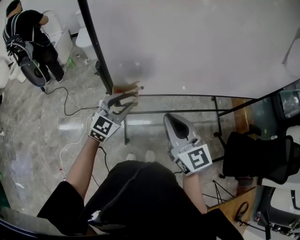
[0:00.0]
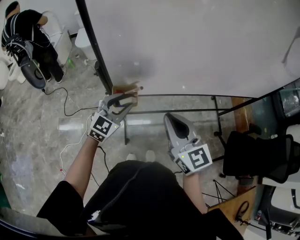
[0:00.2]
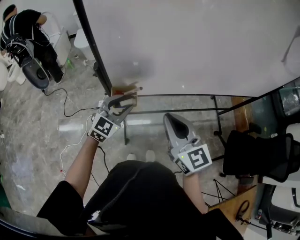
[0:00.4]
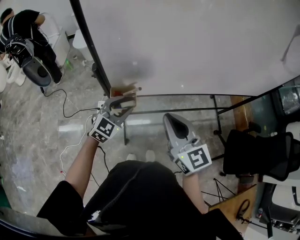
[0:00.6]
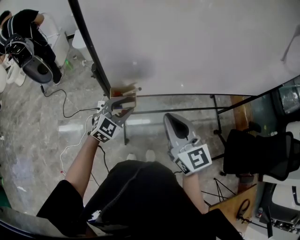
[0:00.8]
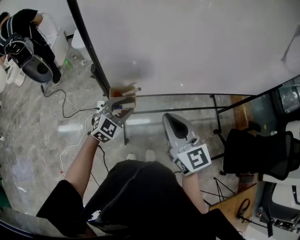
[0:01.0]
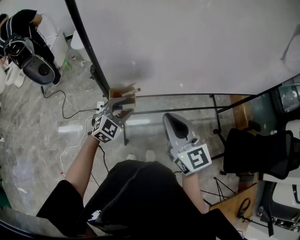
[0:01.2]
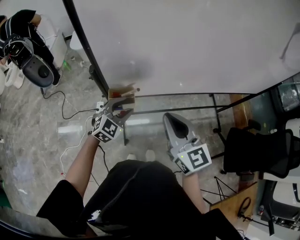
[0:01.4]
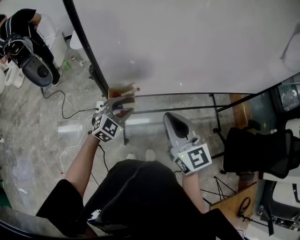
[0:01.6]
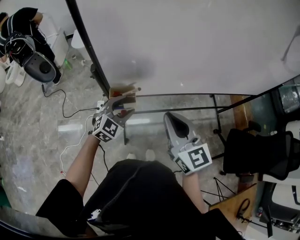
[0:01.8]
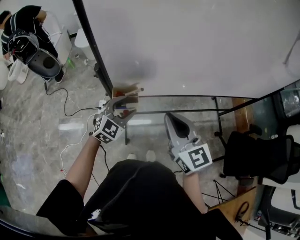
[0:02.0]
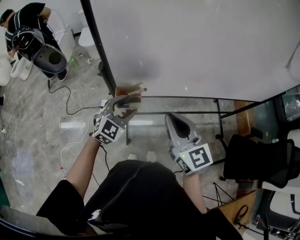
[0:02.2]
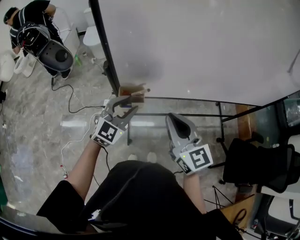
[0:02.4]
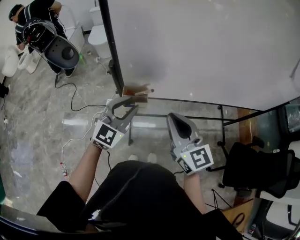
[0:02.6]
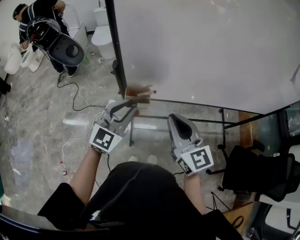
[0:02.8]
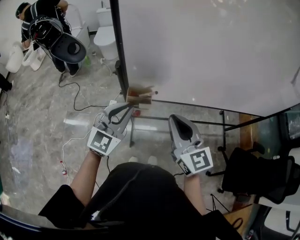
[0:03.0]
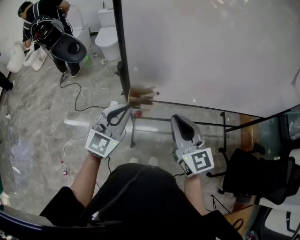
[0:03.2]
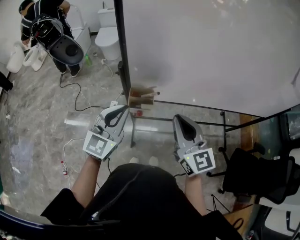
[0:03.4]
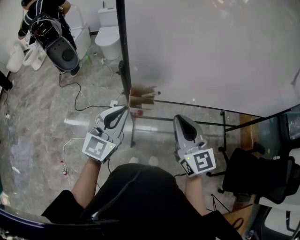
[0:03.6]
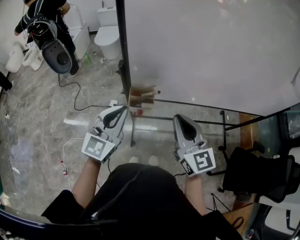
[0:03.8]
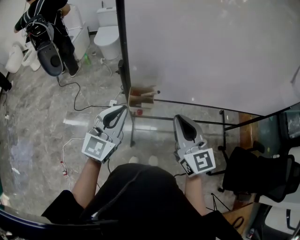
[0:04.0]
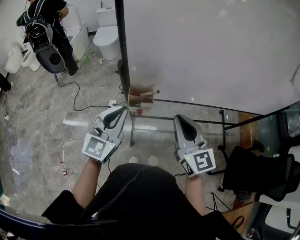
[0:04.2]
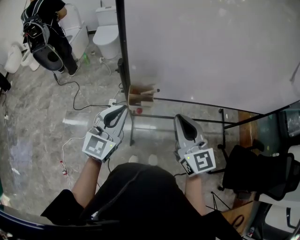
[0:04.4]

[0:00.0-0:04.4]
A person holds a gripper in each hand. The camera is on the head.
0:00.0 to 0:01.4: The left gripper goes some 5 cm downward.
0:01.4 to 0:03.0: The left gripper heads upward, covering approximately 15 cm, changes its angle by some 30 degrees, and closes its fingers.
0:03.0 to 0:04.4: The grippers move only a little.

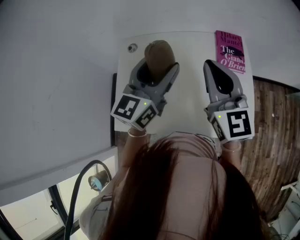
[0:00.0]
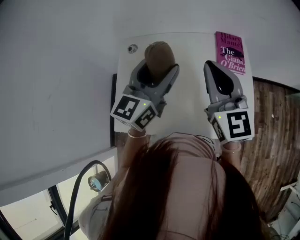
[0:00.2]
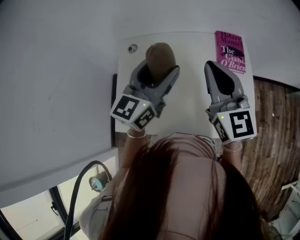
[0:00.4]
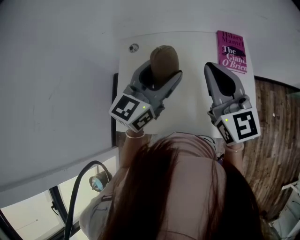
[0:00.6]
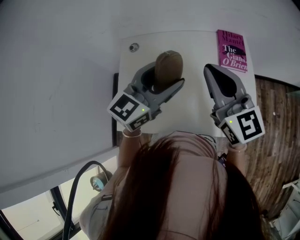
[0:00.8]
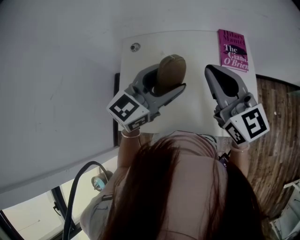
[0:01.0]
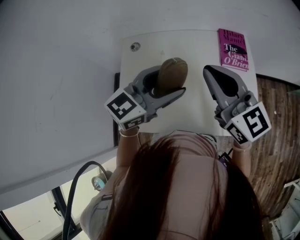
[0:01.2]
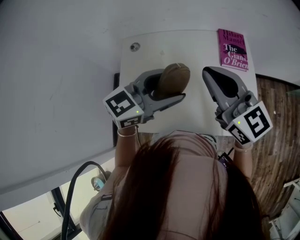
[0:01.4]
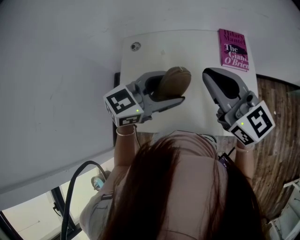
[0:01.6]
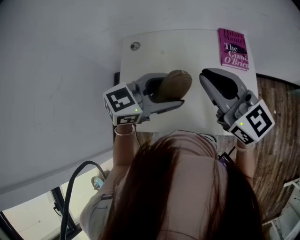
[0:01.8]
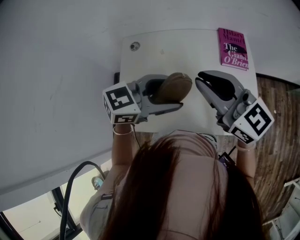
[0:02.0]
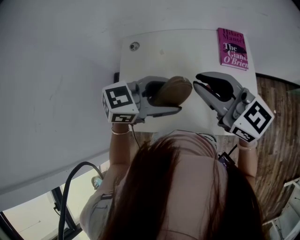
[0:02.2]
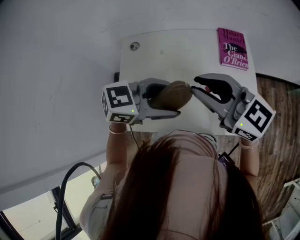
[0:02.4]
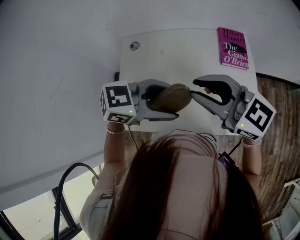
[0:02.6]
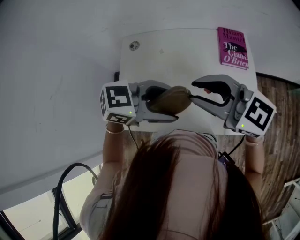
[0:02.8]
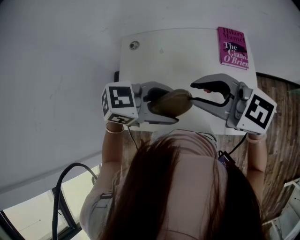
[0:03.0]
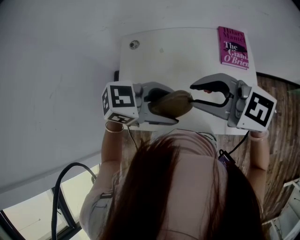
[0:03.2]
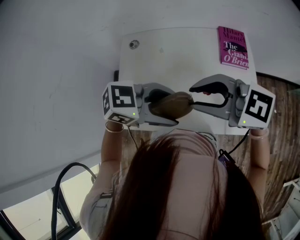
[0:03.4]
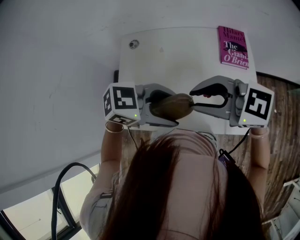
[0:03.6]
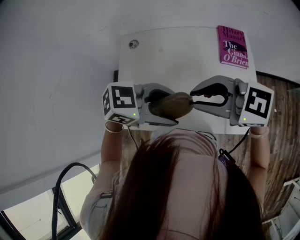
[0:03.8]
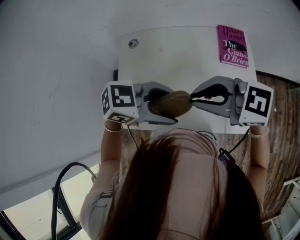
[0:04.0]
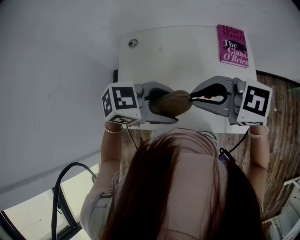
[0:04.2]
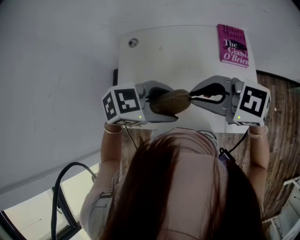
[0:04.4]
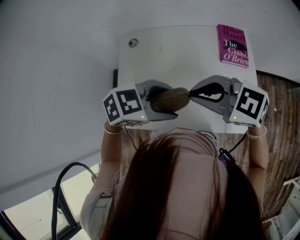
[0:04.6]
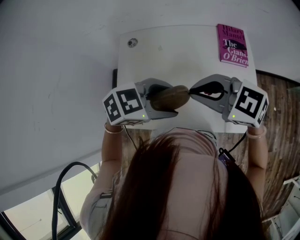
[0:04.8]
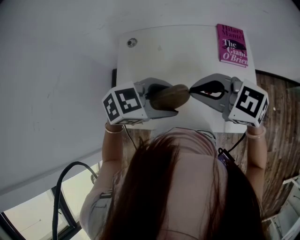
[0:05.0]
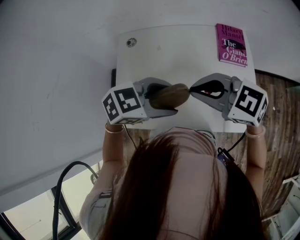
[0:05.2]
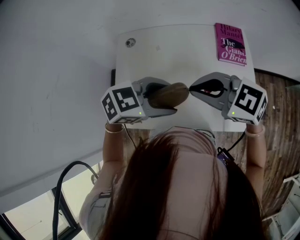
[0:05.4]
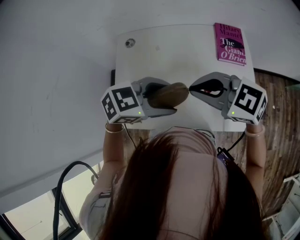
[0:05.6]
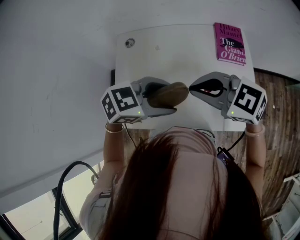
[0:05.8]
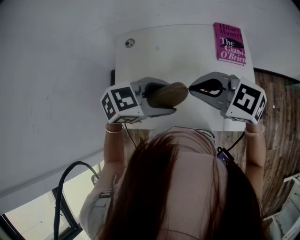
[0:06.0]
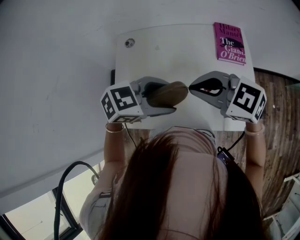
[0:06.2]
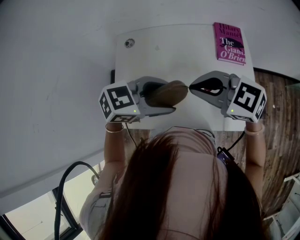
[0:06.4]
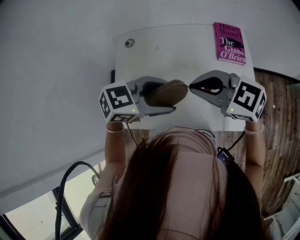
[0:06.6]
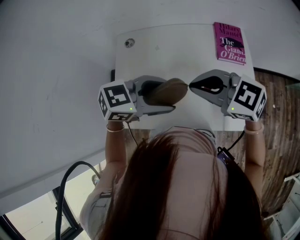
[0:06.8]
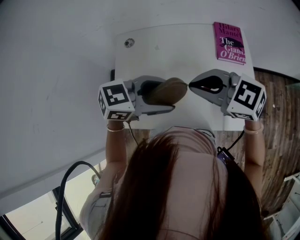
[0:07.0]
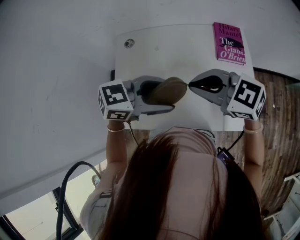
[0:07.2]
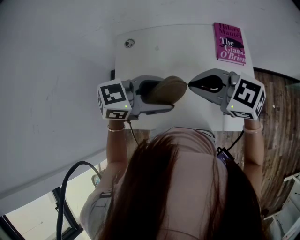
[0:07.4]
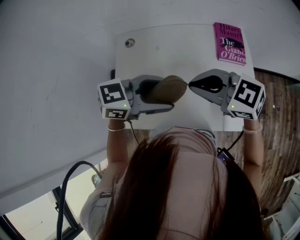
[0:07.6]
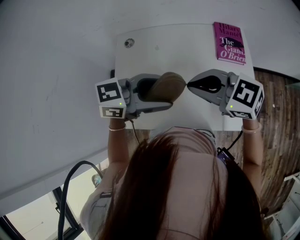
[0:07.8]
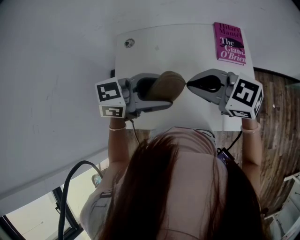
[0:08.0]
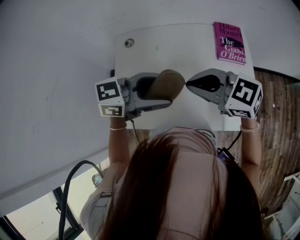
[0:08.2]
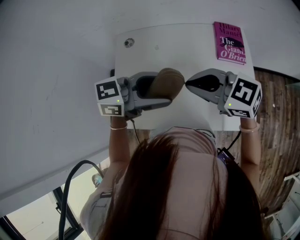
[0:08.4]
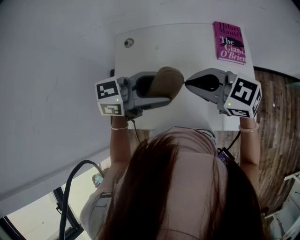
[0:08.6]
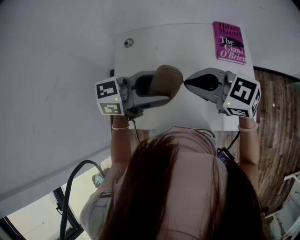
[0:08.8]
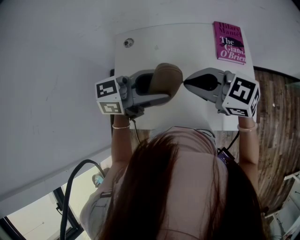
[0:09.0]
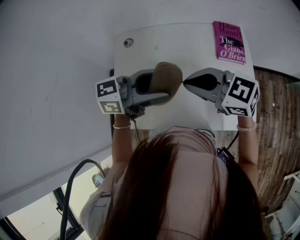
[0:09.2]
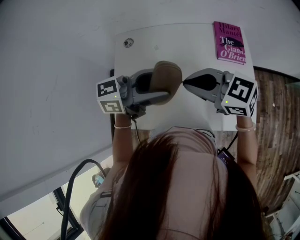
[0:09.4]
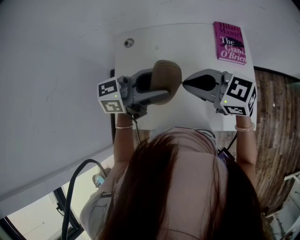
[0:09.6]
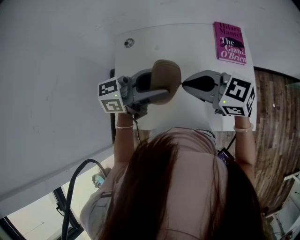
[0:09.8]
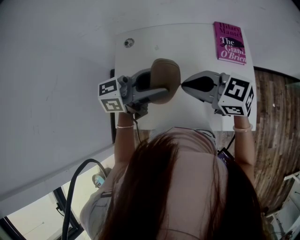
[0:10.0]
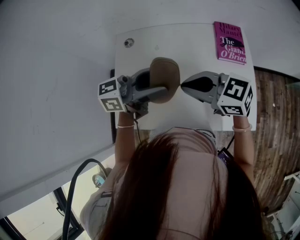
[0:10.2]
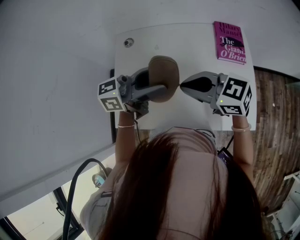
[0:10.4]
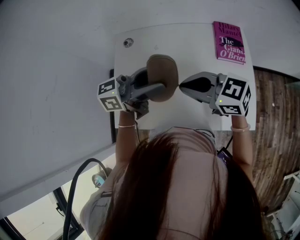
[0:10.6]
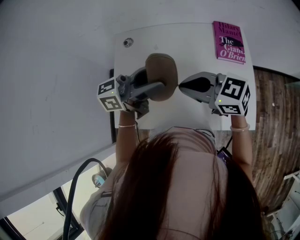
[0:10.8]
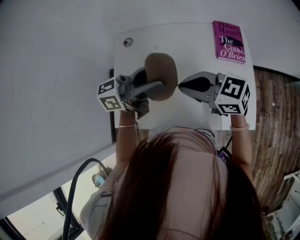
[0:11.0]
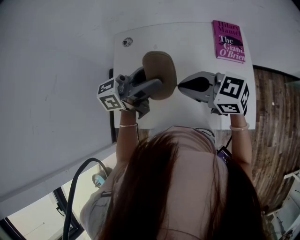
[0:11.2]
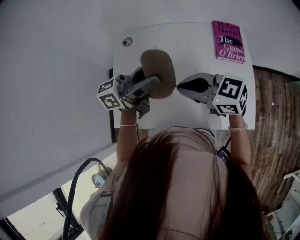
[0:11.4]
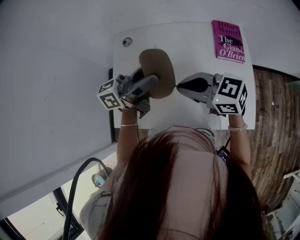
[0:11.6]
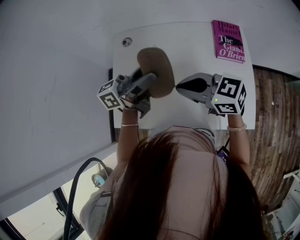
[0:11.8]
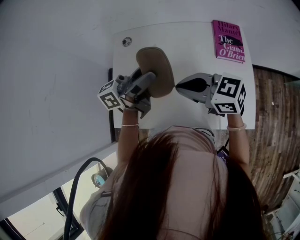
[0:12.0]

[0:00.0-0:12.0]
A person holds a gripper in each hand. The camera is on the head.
0:00.0 to 0:01.6: The right gripper swivels approximately 20 degrees; the left gripper heads backward, covering roughly 5 cm, and rotates roughly 40 degrees.
0:01.6 to 0:03.0: The right gripper changes place by some 5 cm, changes its angle by approximately 30 degrees, and opens, while the left gripper shifts by some 5 cm, and turns by some 30 degrees.
0:03.0 to 0:06.0: The grippers make only small movements.
0:06.0 to 0:07.6: The grippers move only a little.
0:07.6 to 0:09.0: There are only small adjustments of the grippers.
0:09.0 to 0:10.4: The grippers make only small movements.
0:10.4 to 0:12.0: The grippers move only a little.

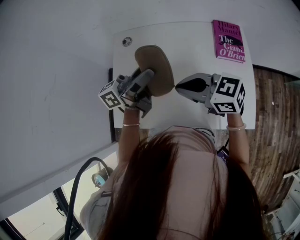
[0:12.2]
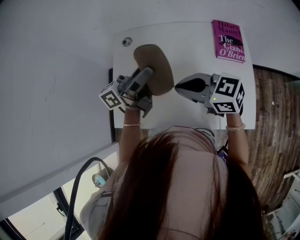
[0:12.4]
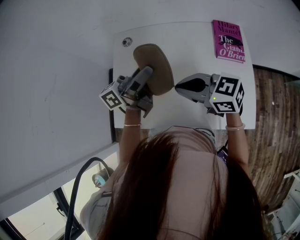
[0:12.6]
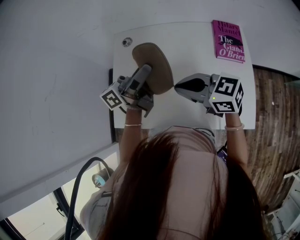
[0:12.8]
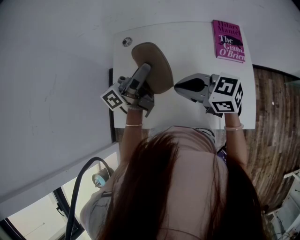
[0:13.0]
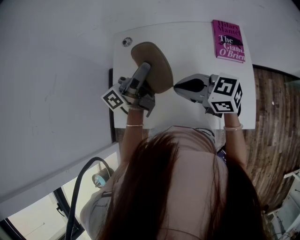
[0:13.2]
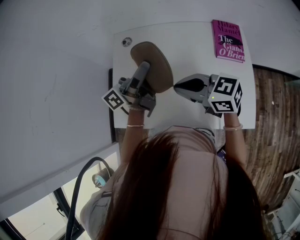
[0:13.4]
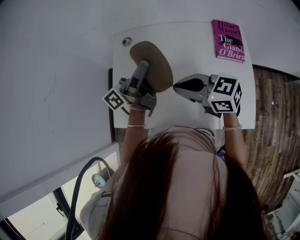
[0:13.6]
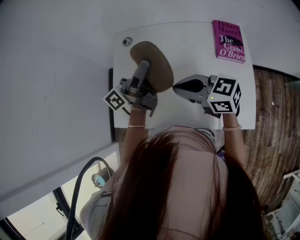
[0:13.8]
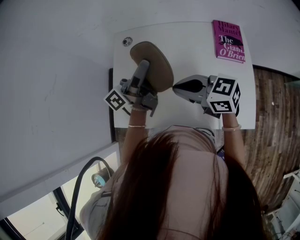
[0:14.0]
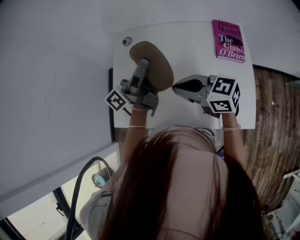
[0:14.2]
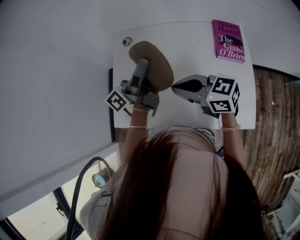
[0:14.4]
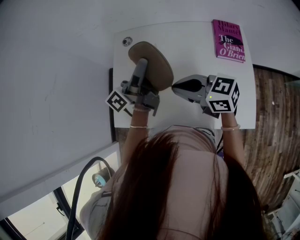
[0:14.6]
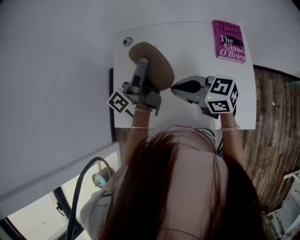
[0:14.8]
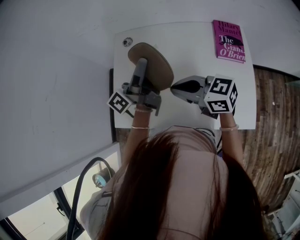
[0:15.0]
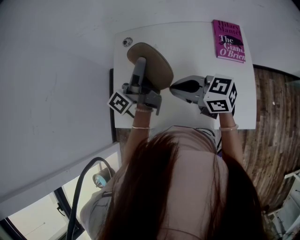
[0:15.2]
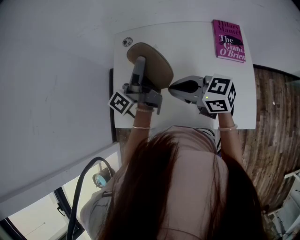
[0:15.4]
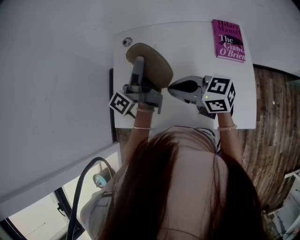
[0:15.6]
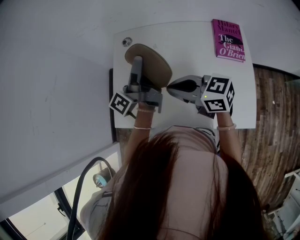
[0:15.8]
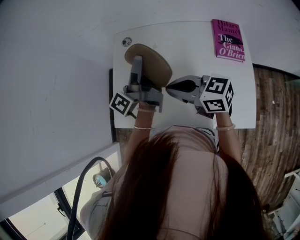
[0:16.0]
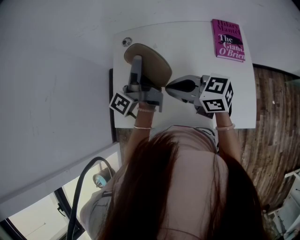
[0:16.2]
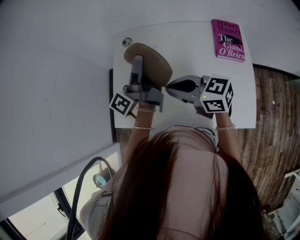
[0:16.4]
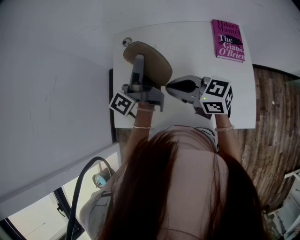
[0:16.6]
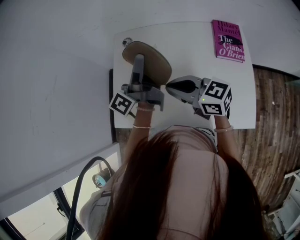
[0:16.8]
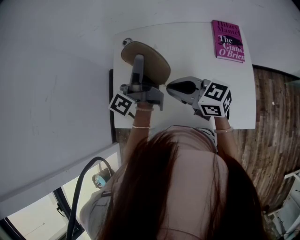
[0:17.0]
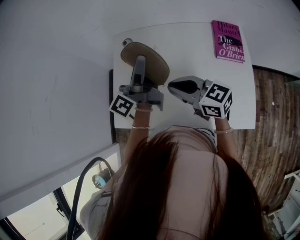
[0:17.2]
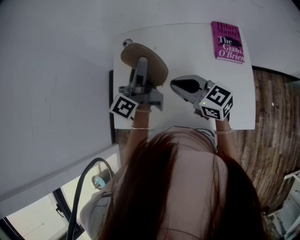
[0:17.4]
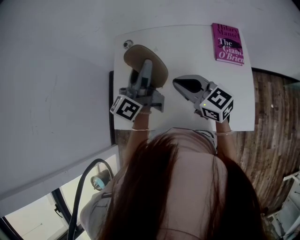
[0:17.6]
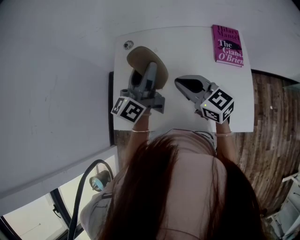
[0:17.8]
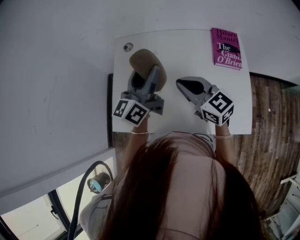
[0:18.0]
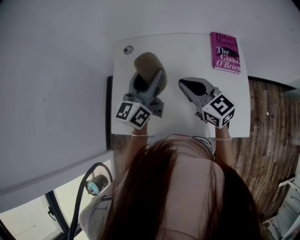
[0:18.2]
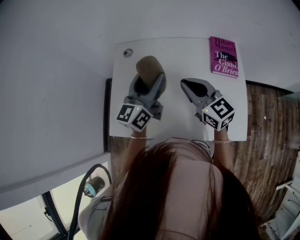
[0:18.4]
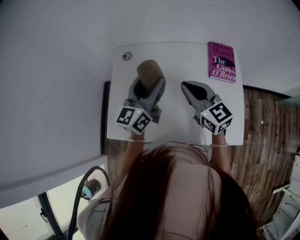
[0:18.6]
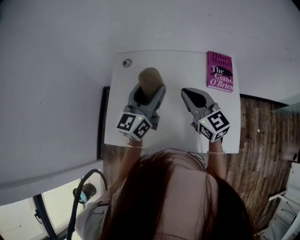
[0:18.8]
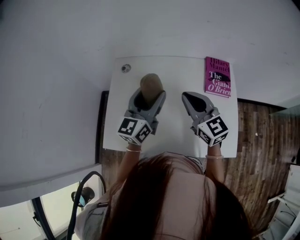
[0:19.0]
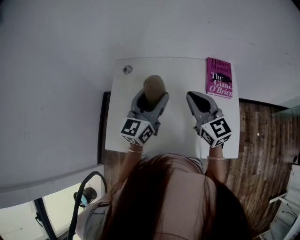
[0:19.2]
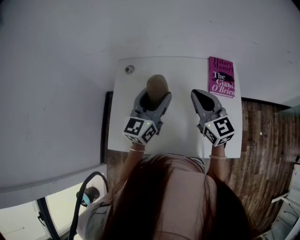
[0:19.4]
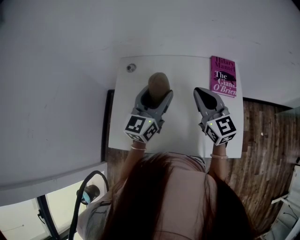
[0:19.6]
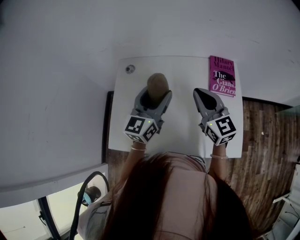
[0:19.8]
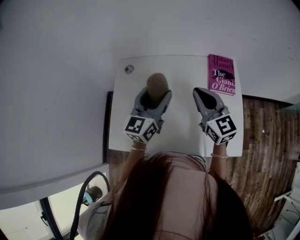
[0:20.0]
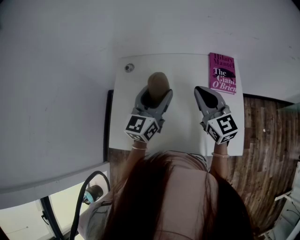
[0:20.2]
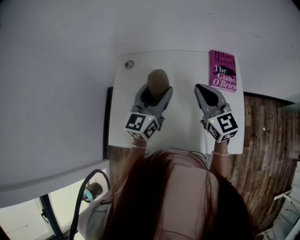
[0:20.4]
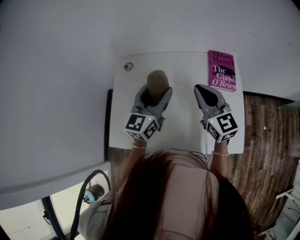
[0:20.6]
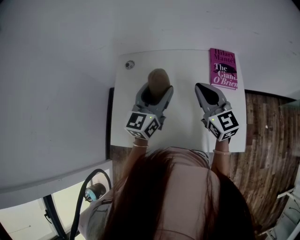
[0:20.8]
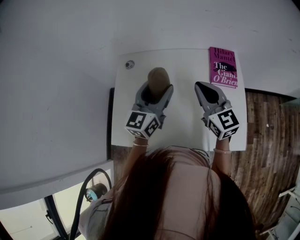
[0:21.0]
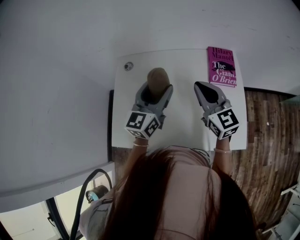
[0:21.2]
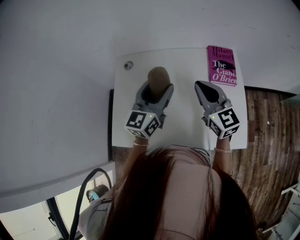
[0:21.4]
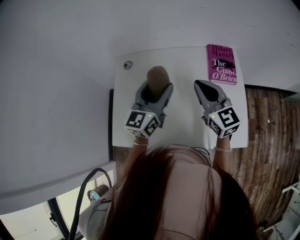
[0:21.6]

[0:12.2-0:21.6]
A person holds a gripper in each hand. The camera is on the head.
0:12.2 to 0:13.8: There are only small adjustments of the grippers.
0:13.8 to 0:15.4: The grippers stay close to where they were, moving slightly.
0:15.4 to 0:17.0: The grippers stay close to where they were, moving slightly.
0:17.0 to 0:18.4: The left gripper rotates around the line of its fingers by about 40 degrees, clockwise from behind. The right gripper travels to the right by some 10 cm, and swivels approximately 30 degrees.
0:18.4 to 0:20.0: The right gripper travels to the right by approximately 5 cm.
0:20.0 to 0:21.6: Neither gripper changes place.
